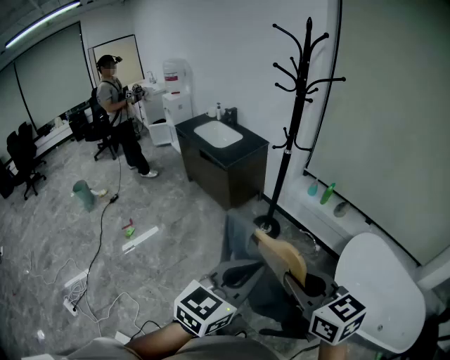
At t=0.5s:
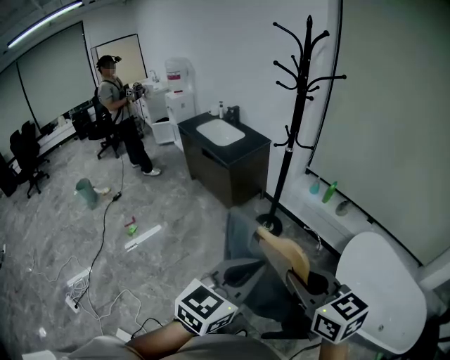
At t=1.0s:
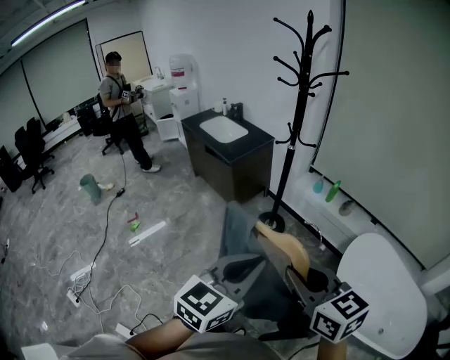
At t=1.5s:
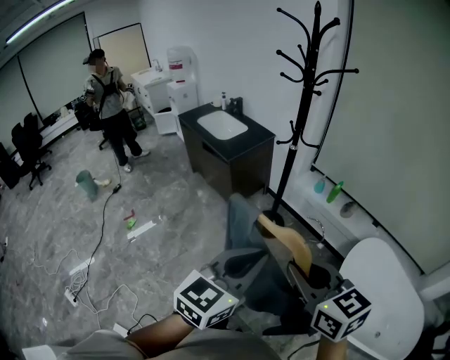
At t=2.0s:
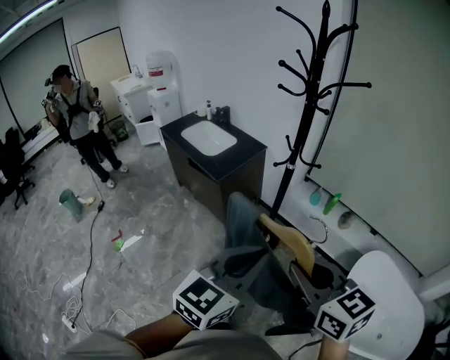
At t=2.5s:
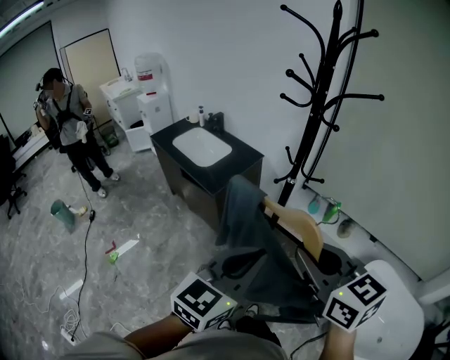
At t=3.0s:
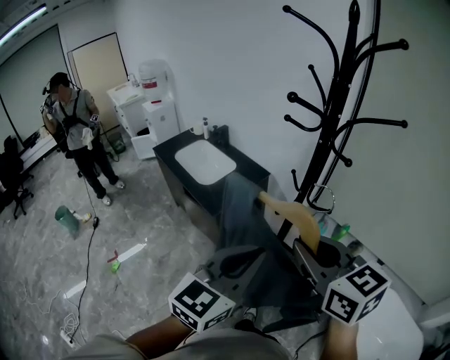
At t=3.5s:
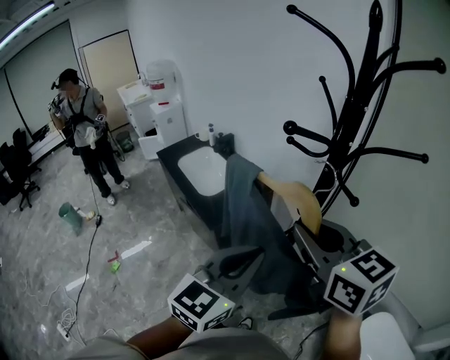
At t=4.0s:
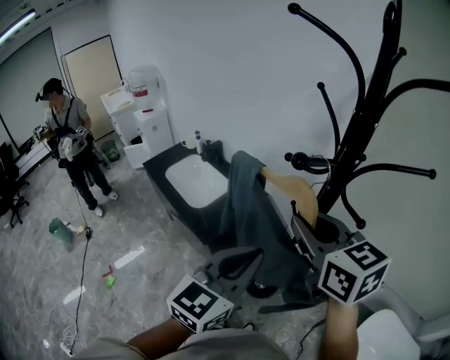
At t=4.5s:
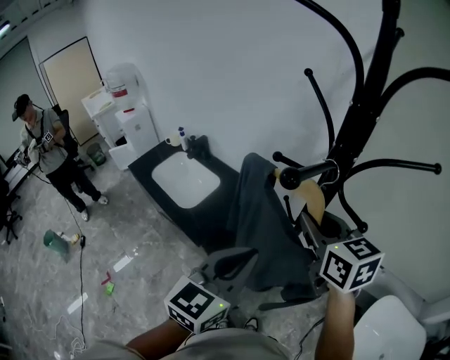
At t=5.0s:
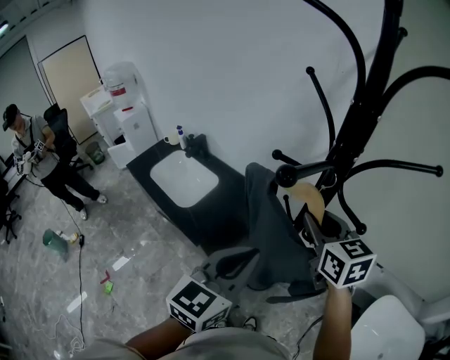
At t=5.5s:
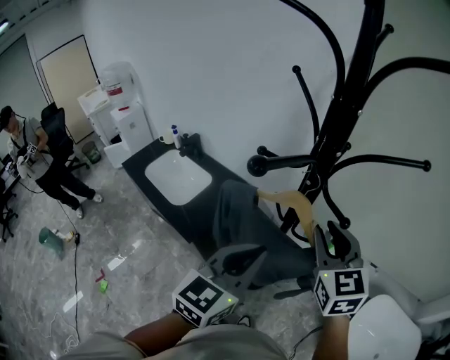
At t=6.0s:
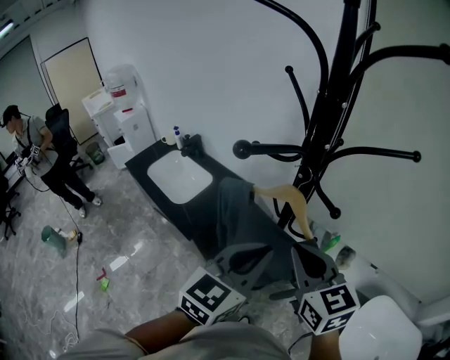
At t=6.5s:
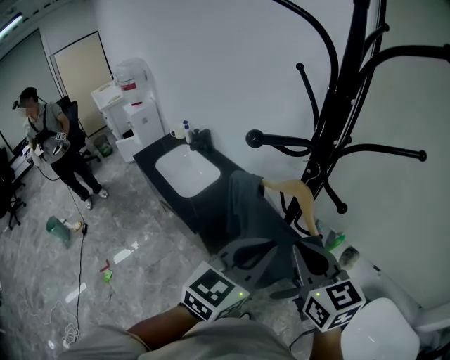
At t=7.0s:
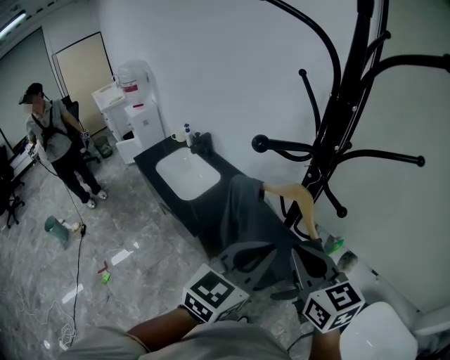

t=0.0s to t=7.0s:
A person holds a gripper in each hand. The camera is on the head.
t=0.0s to t=2.0s: Both grippers travel together forward, approximately 25 cm.
t=2.0s to t=3.5s: Both grippers move forward, about 35 cm.
t=3.5s to t=5.0s: The right gripper goes some 20 cm forward and downward, and turns by about 20 degrees. The left gripper goes some 10 cm forward.
t=5.0s to t=7.0s: The right gripper goes about 15 cm backward. Meanwhile the left gripper moves to the right, approximately 5 cm.

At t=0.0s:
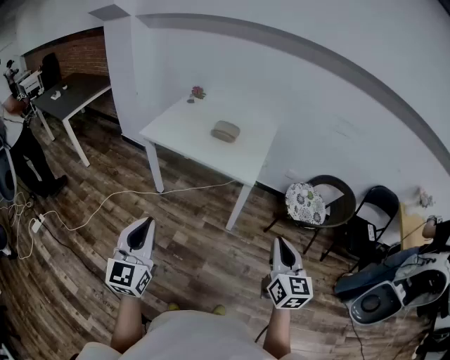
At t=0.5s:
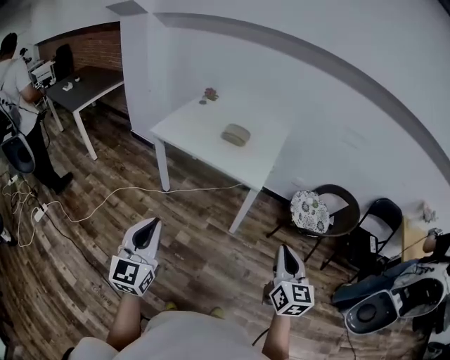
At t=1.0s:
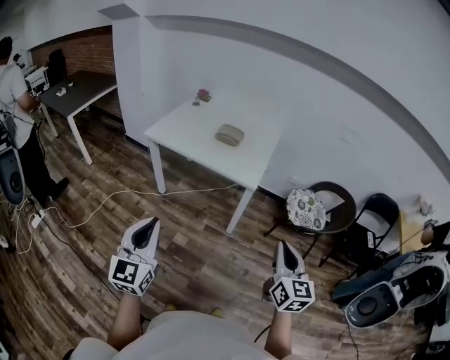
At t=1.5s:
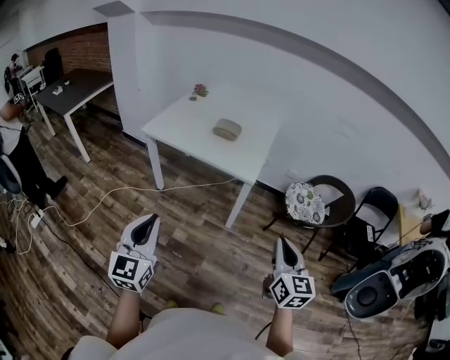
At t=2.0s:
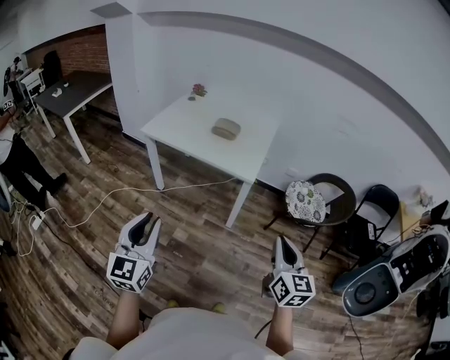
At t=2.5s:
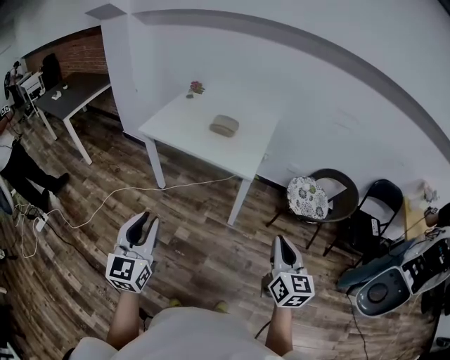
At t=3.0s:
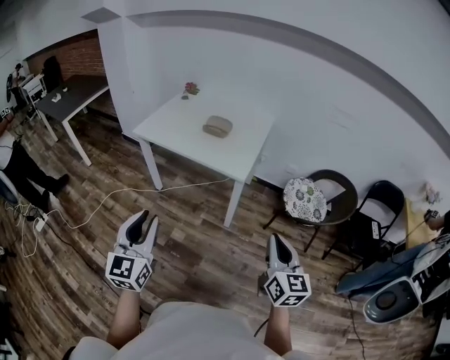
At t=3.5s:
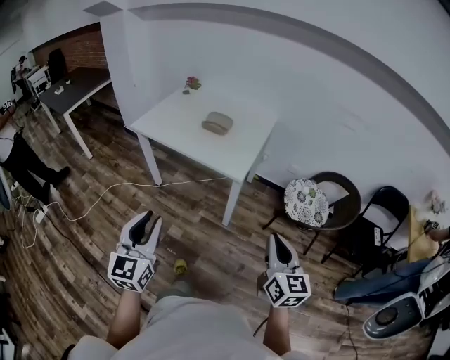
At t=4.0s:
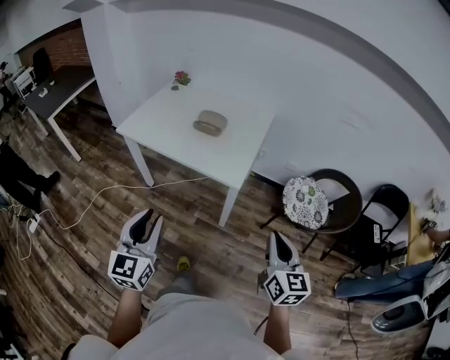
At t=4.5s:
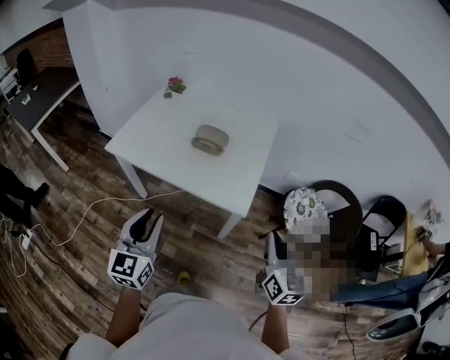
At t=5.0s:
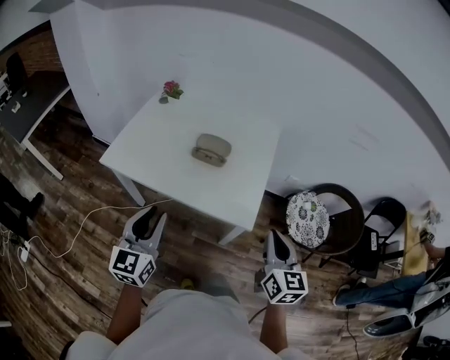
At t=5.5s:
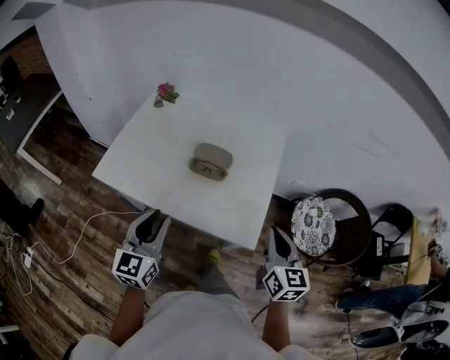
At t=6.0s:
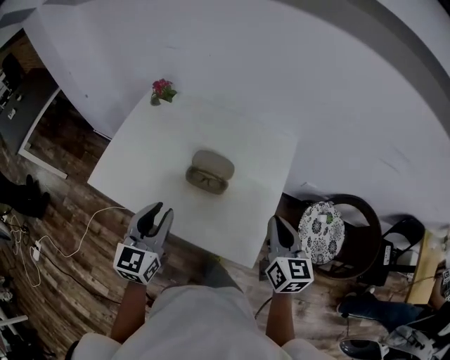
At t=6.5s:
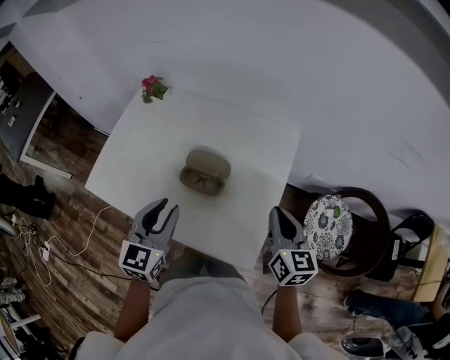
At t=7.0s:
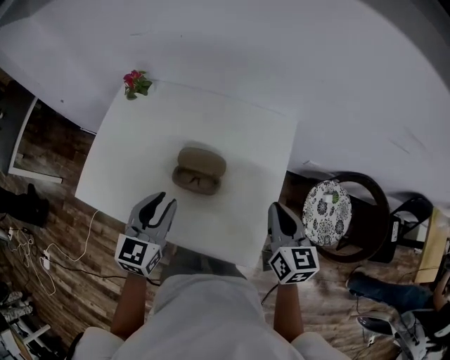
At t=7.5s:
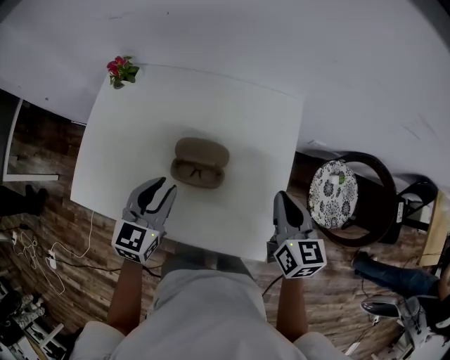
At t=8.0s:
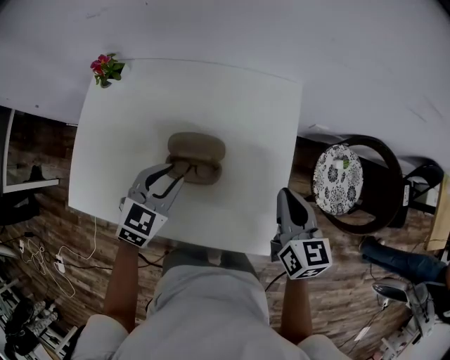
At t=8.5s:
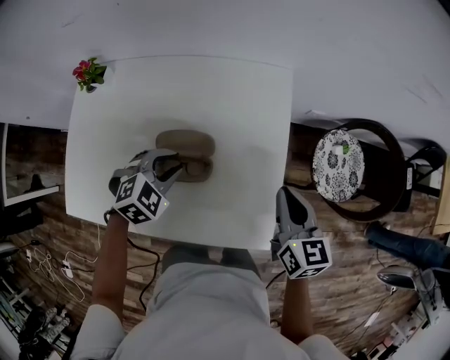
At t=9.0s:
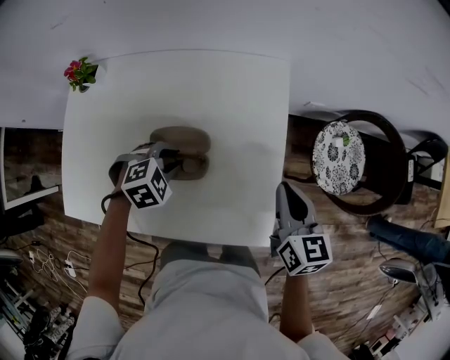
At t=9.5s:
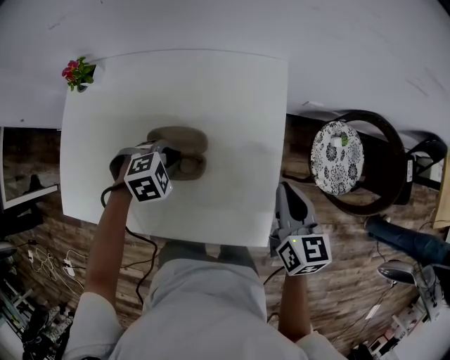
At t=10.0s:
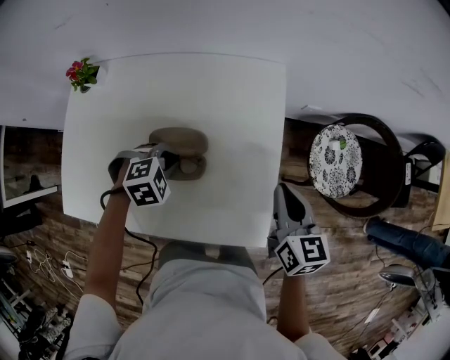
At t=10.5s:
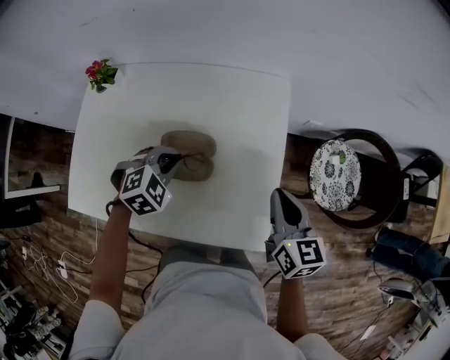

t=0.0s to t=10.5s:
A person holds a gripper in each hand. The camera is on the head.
t=0.0s to t=2.0s: There are only small adjustments of the grippers.
t=2.0s to t=4.0s: Both grippers move forward and to the right, about 20 cm.
t=4.0s to t=6.5s: The pair of grippers is taken forward, about 50 cm.
t=6.5s to t=8.5s: The left gripper heads downward, covering approximately 15 cm, and tips its fingers downward by some 40 degrees. Meanwhile the right gripper travels downward by approximately 10 cm.
t=8.5s to t=10.5s: The left gripper closes its fingers.

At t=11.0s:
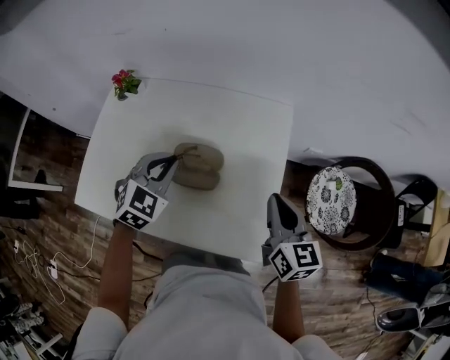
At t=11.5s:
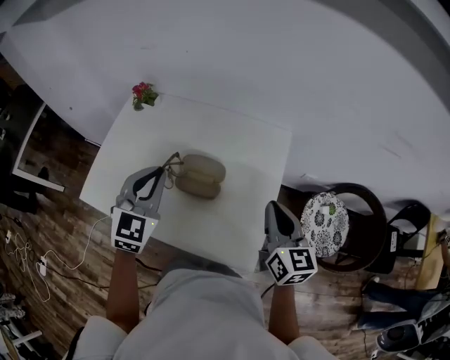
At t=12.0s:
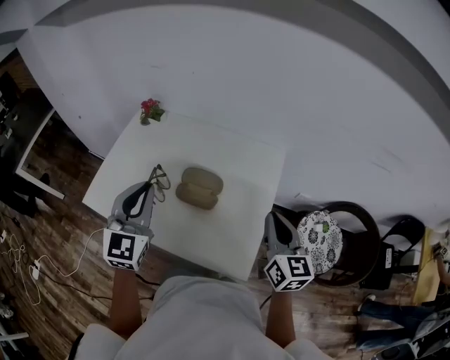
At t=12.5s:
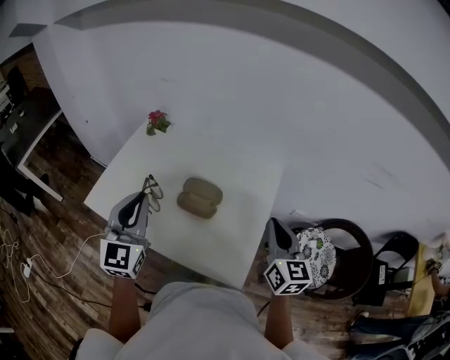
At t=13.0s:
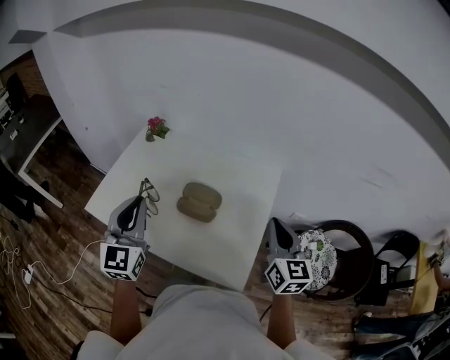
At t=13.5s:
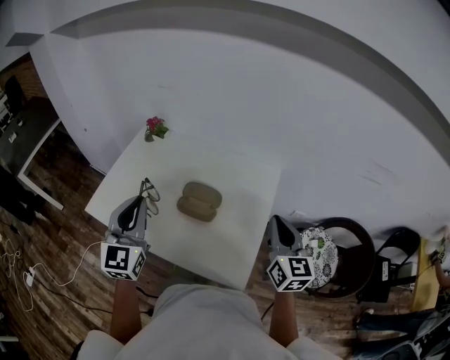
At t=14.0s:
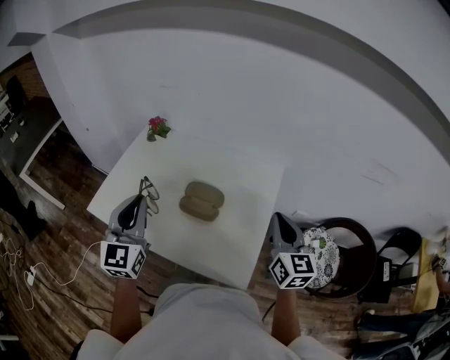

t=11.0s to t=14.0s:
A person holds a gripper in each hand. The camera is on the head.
t=11.0s to t=12.5s: The right gripper goes approximately 10 cm upward. The left gripper goes roughly 25 cm upward, backward and to the left, and angles its fingers upward, by some 40 degrees.
t=12.5s to t=14.0s: There are only small adjustments of the grippers.

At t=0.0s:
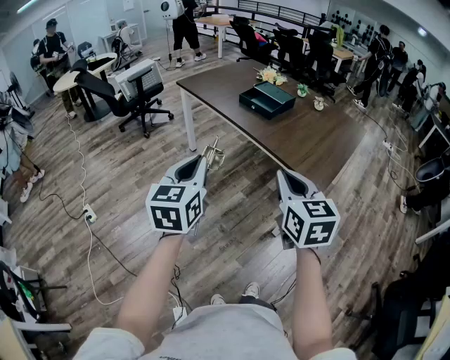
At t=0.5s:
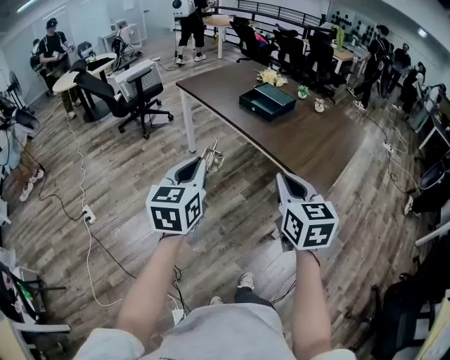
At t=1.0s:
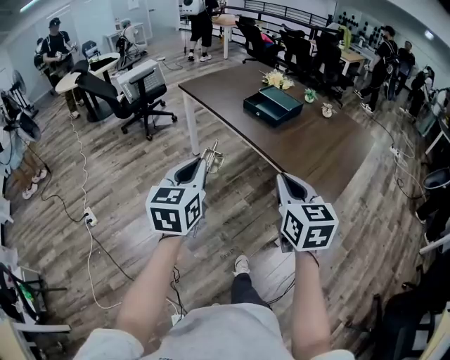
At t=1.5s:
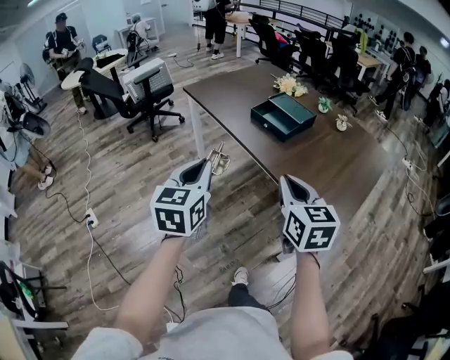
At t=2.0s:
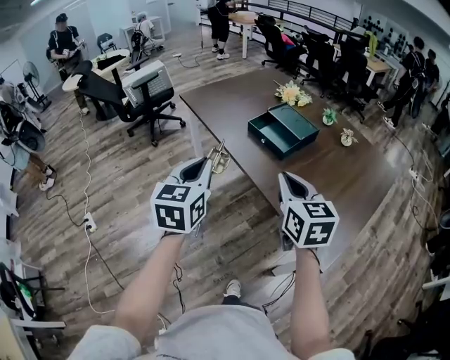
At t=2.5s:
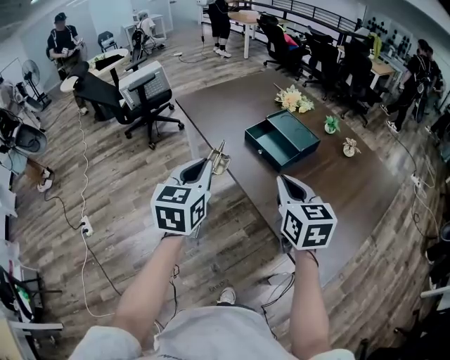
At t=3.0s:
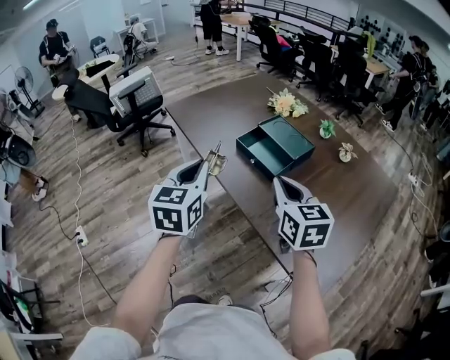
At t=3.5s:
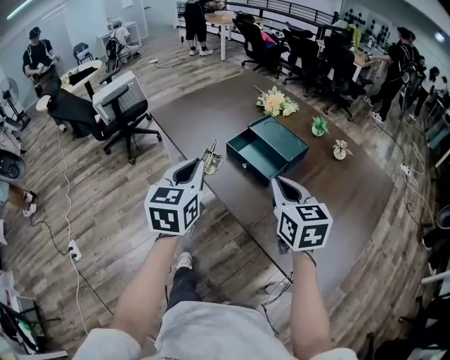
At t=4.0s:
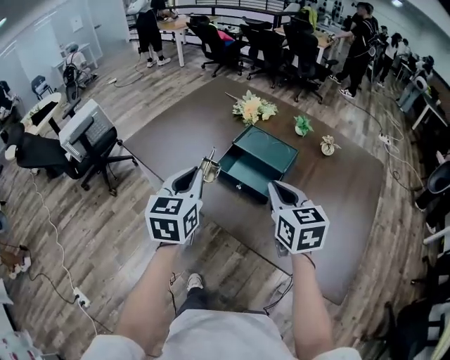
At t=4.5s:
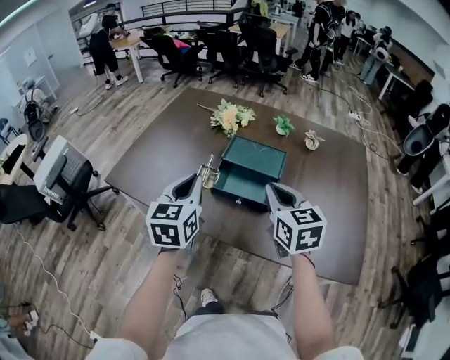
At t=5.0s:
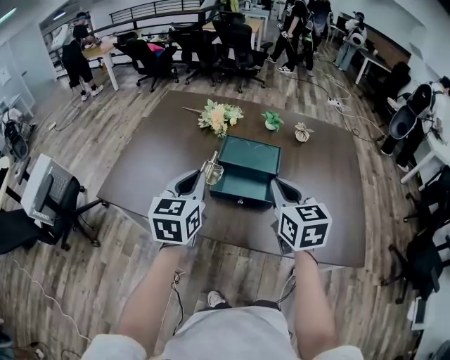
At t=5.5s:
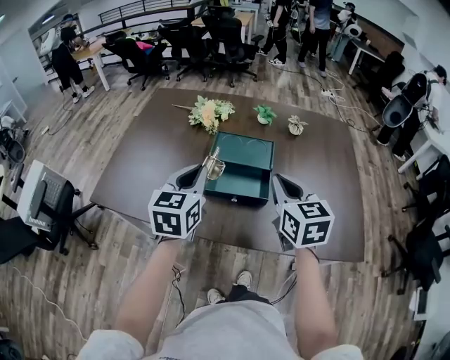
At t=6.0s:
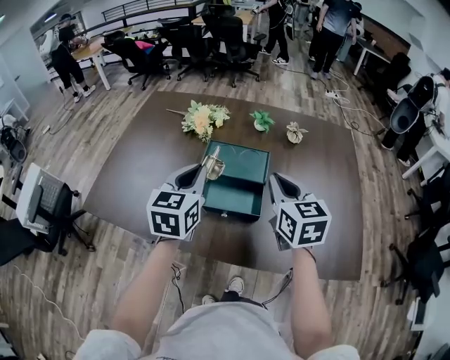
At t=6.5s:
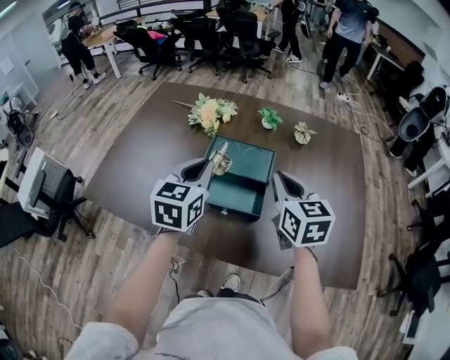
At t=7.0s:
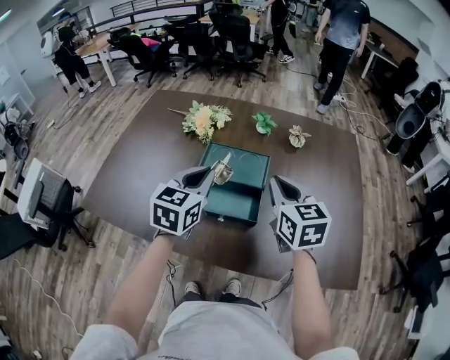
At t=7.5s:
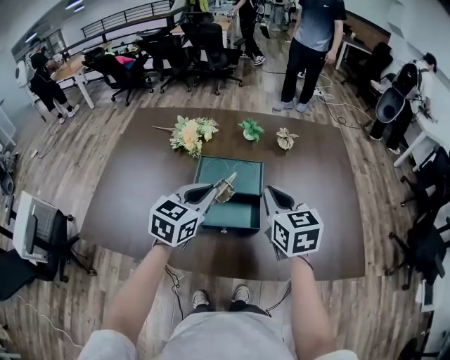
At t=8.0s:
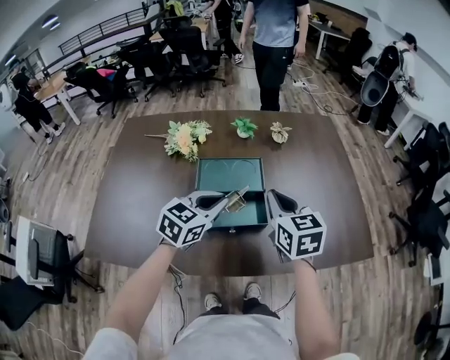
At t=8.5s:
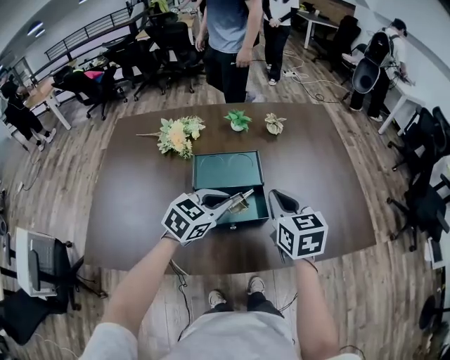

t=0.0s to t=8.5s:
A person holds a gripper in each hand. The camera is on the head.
t=0.0s to t=2.0s: The two grippers go about 30 cm forward.
t=2.0s to t=4.0s: The two grippers go roughly 25 cm forward.
t=4.0s to t=6.5s: The right gripper moves roughly 10 cm, and rotates about 20 degrees. The left gripper shifts by about 20 cm, and swivels about 30 degrees.
t=6.5s to t=8.5s: The right gripper shifts by roughly 5 cm. The left gripper travels downward by approximately 10 cm, and changes its angle by some 50 degrees.
